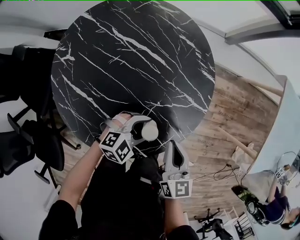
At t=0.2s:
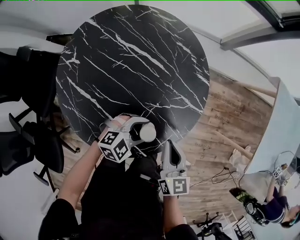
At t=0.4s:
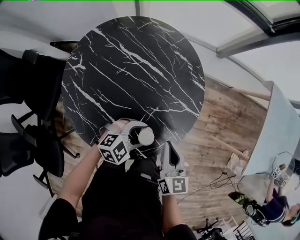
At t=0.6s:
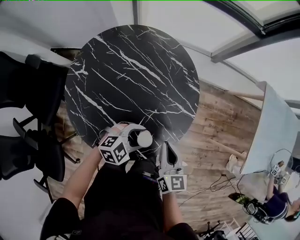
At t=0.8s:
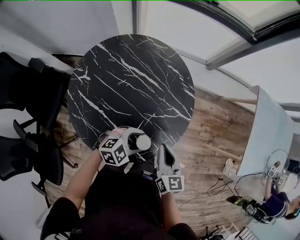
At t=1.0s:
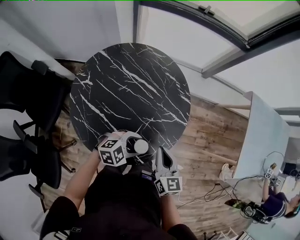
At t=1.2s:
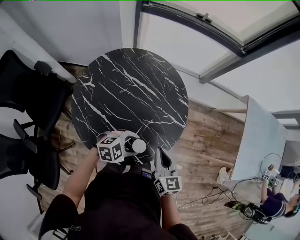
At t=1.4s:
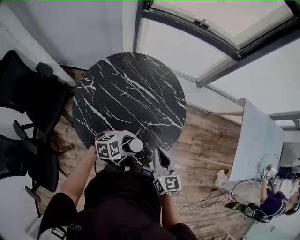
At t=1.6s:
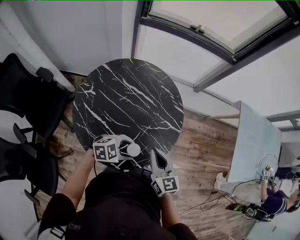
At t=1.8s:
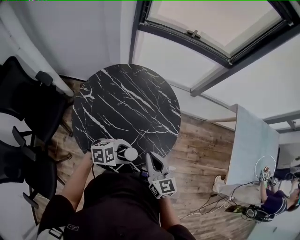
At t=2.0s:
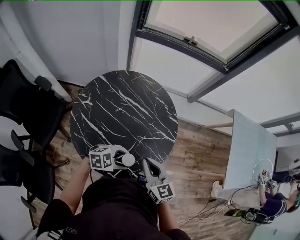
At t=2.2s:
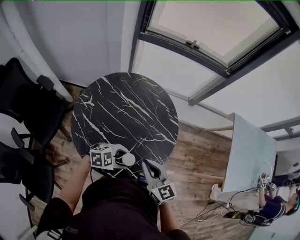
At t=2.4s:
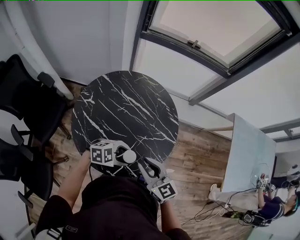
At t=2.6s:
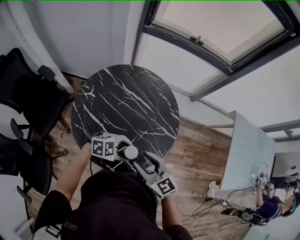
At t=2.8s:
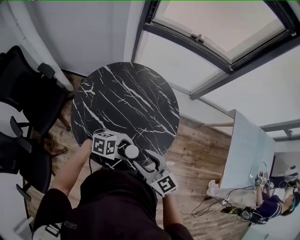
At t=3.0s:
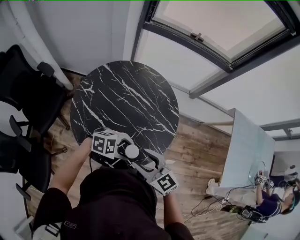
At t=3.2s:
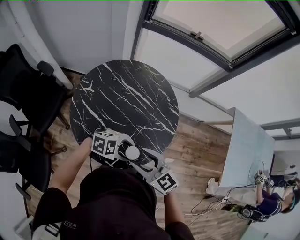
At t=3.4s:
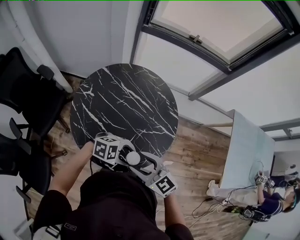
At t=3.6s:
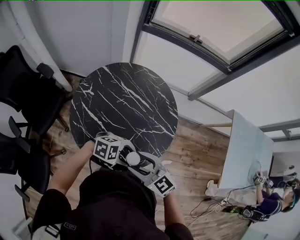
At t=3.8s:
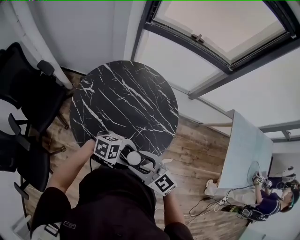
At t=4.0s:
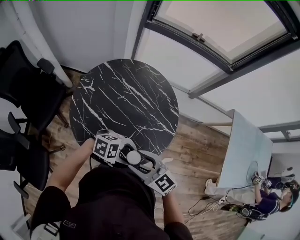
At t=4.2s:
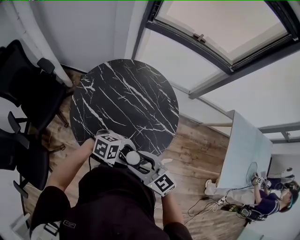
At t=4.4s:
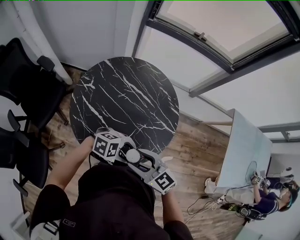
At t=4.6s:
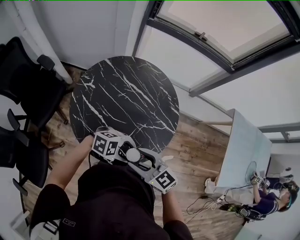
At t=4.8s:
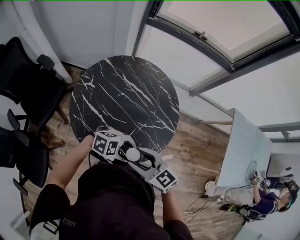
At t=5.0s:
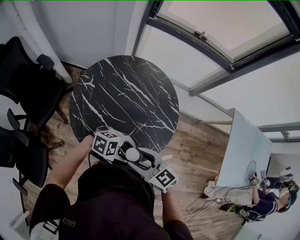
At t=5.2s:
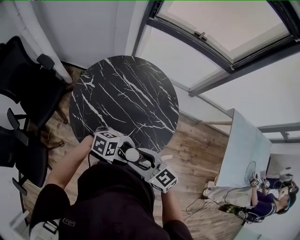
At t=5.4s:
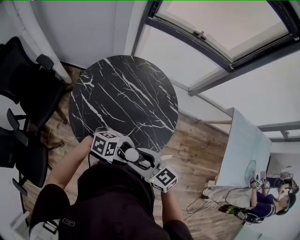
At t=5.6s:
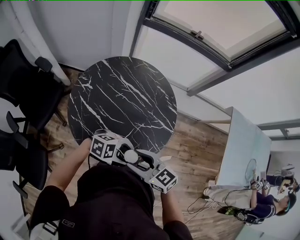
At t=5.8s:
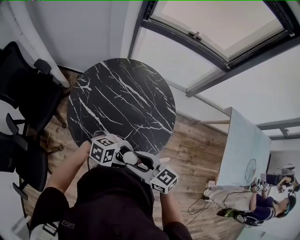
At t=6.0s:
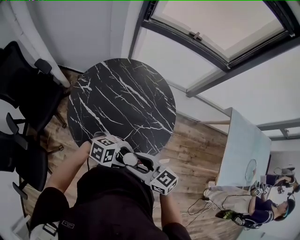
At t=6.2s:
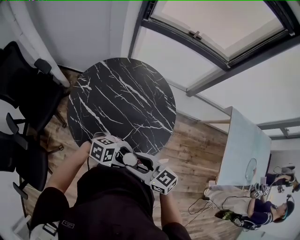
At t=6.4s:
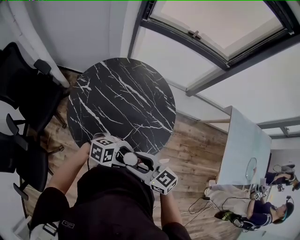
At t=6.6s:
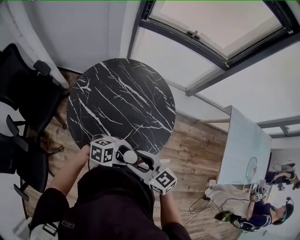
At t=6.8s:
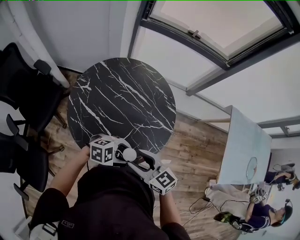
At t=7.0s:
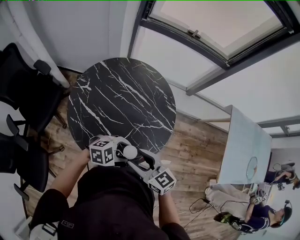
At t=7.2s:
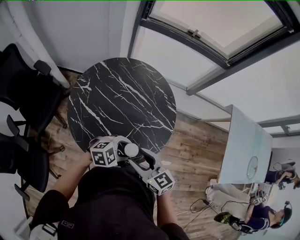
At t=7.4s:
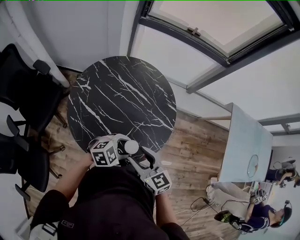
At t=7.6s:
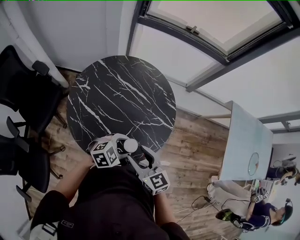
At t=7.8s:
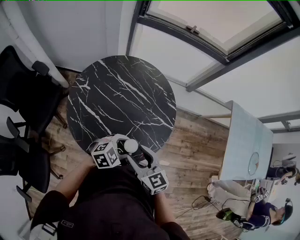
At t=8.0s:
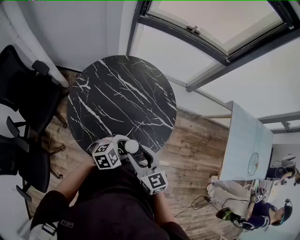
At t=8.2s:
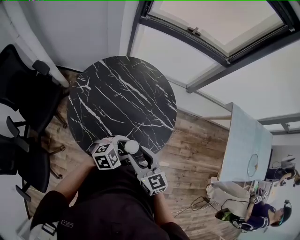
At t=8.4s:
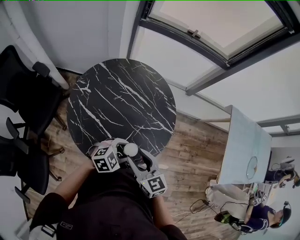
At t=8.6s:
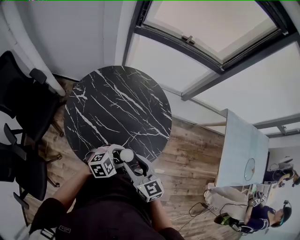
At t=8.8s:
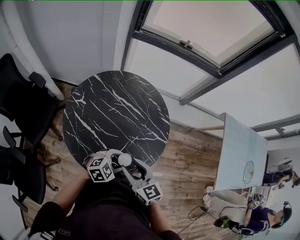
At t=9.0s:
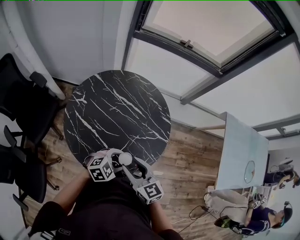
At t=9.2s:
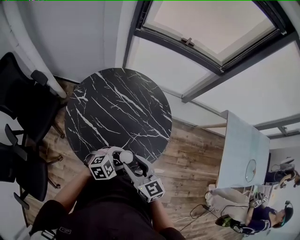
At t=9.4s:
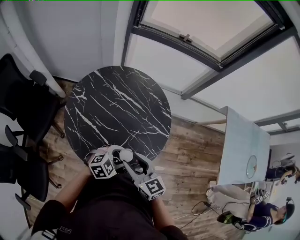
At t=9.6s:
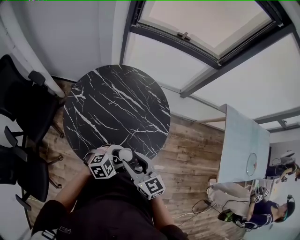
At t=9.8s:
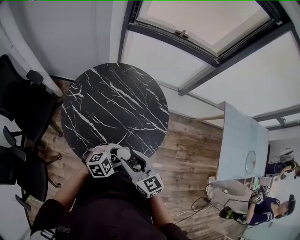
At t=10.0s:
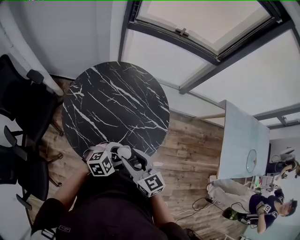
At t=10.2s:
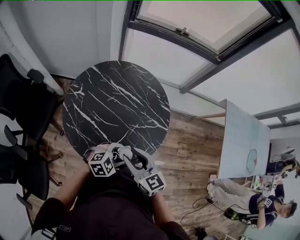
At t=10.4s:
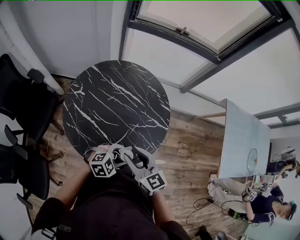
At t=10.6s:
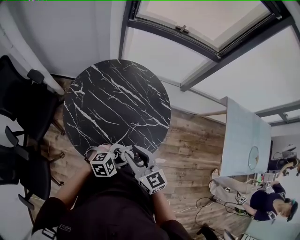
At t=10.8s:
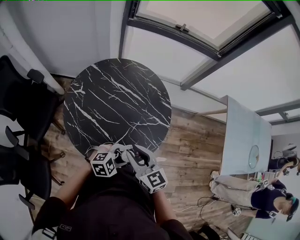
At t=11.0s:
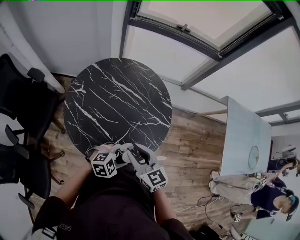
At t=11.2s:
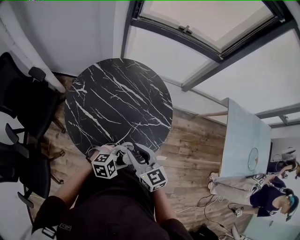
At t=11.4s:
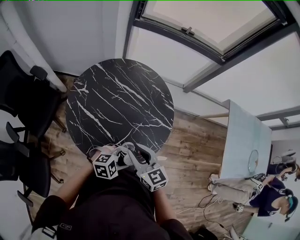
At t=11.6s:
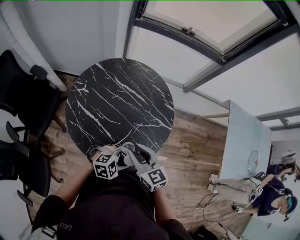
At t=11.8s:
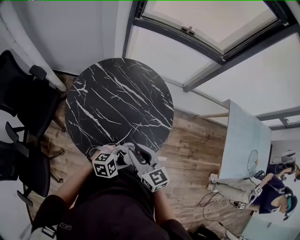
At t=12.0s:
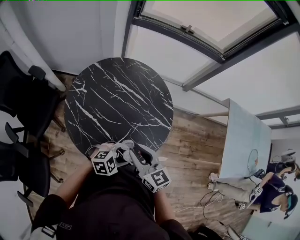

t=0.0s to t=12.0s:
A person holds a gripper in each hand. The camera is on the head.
t=0.0s to t=1.6s: The grippers both shift upward and backward by approximately 20 cm.
t=1.6s to t=3.0s: The right gripper ends up some 10 cm from where it was, swivels about 30 degrees, and opens its fingers.
t=3.0s to t=6.0s: The grippers move only a little.
t=6.0s to t=7.6s: The left gripper moves some 5 cm, and changes its angle by roughly 40 degrees. Meanwhile the right gripper swivels approximately 20 degrees.
t=7.6s to t=10.4s: The grippers stay close to where they were, moving slightly.
t=10.4s to t=12.0s: The grippers stay close to where they were, moving slightly.

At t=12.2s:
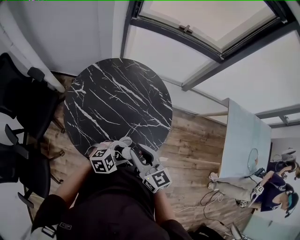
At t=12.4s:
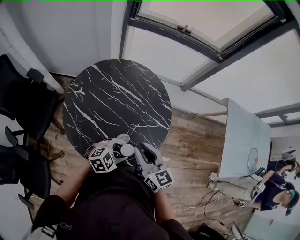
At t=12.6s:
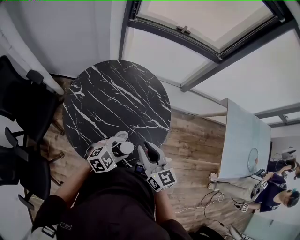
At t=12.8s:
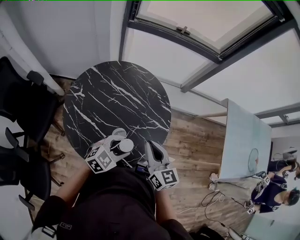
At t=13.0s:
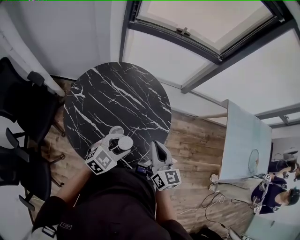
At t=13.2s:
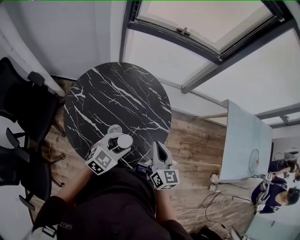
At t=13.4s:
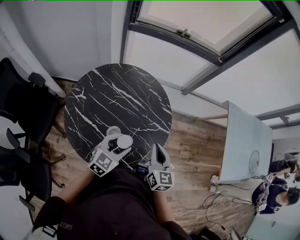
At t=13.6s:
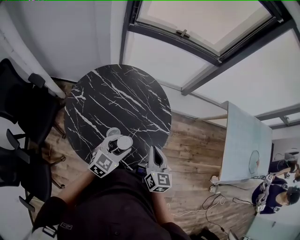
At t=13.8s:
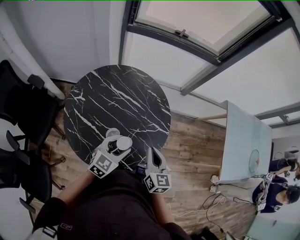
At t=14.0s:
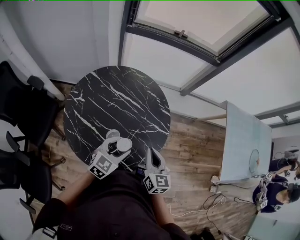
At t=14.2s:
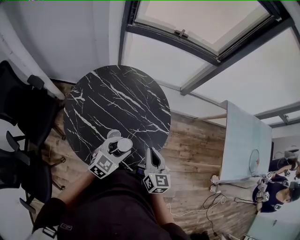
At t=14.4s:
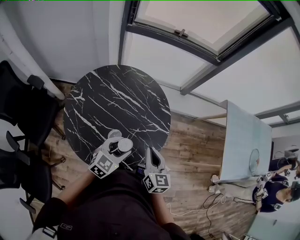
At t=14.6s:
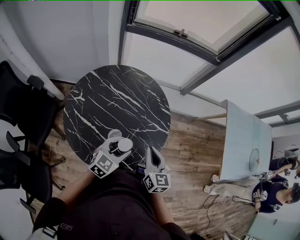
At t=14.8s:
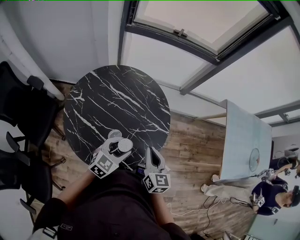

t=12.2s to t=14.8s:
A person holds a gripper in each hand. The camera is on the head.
t=12.2s to t=13.4s: The right gripper moves to the right and forward, about 10 cm, rotates roughly 30 degrees, and closes up. Meanwhile the left gripper shifts about 10 cm forward and upward, and changes its angle by about 30 degrees.
t=13.4s to t=14.8s: There are only small adjustments of the grippers.

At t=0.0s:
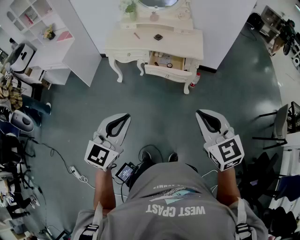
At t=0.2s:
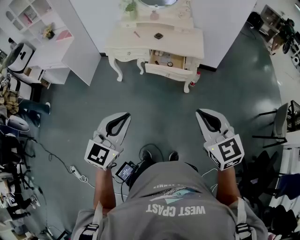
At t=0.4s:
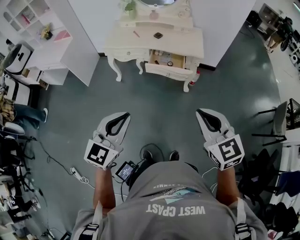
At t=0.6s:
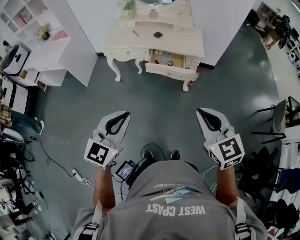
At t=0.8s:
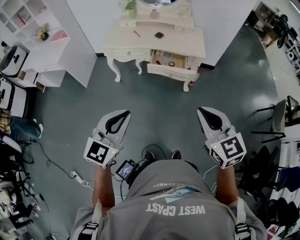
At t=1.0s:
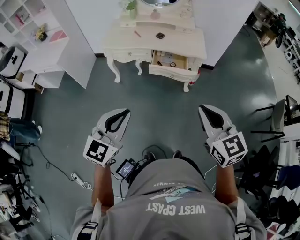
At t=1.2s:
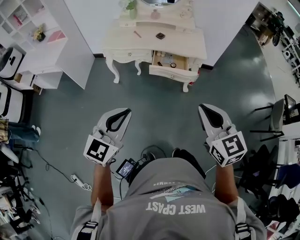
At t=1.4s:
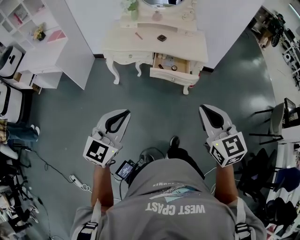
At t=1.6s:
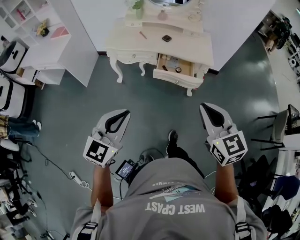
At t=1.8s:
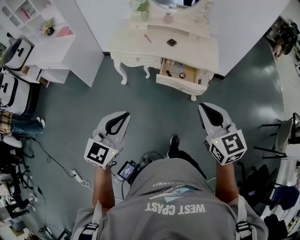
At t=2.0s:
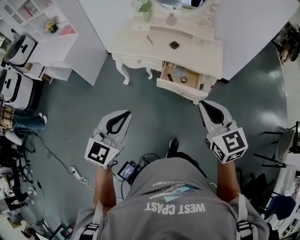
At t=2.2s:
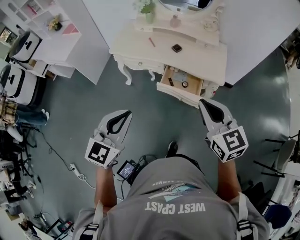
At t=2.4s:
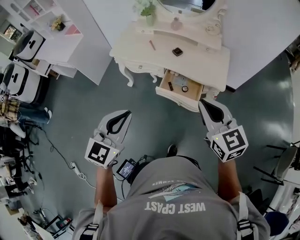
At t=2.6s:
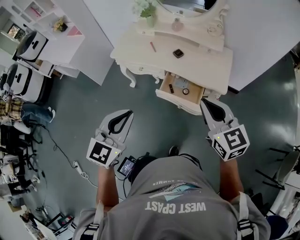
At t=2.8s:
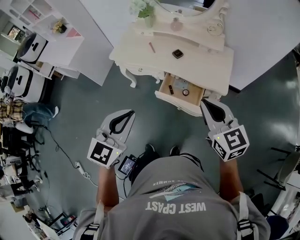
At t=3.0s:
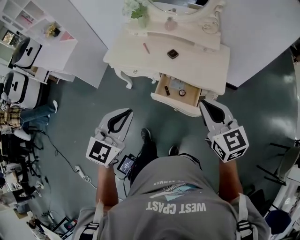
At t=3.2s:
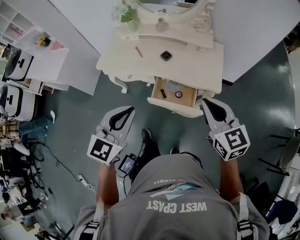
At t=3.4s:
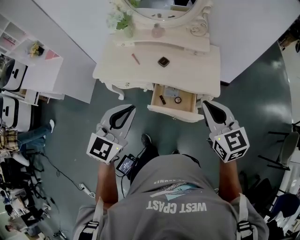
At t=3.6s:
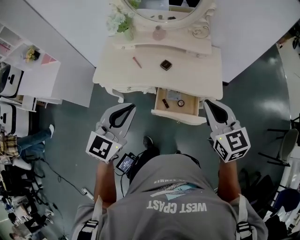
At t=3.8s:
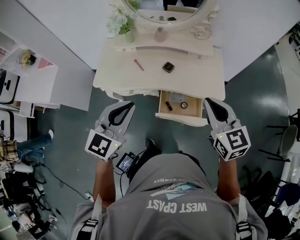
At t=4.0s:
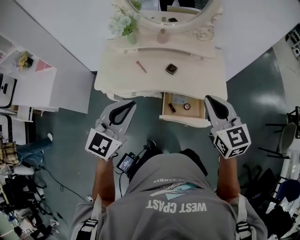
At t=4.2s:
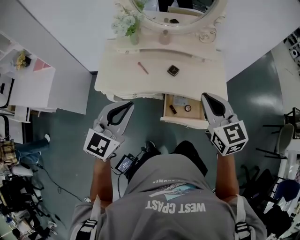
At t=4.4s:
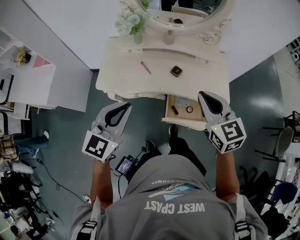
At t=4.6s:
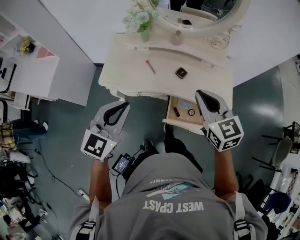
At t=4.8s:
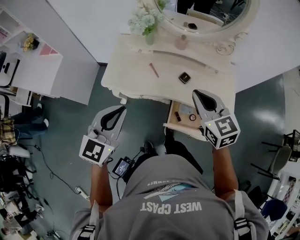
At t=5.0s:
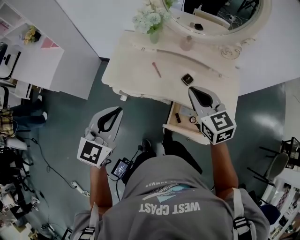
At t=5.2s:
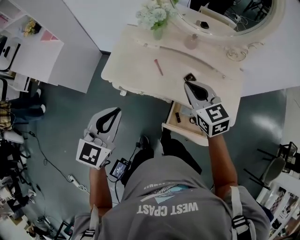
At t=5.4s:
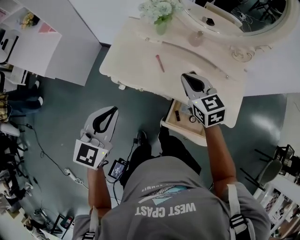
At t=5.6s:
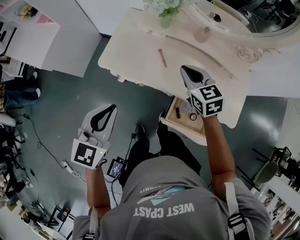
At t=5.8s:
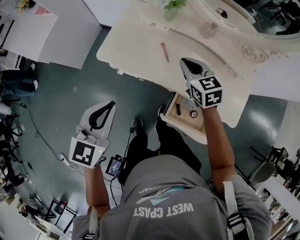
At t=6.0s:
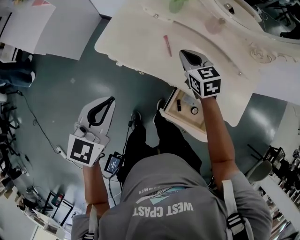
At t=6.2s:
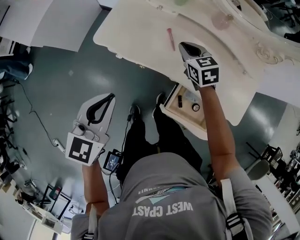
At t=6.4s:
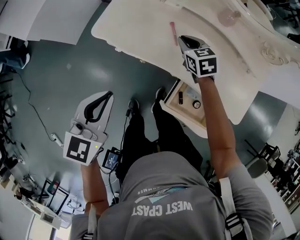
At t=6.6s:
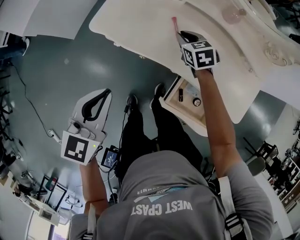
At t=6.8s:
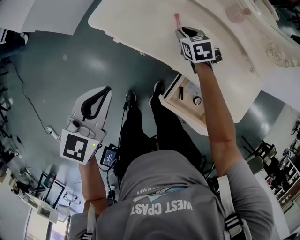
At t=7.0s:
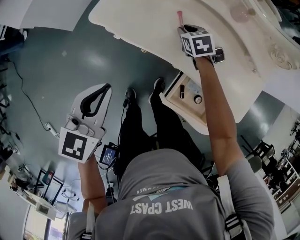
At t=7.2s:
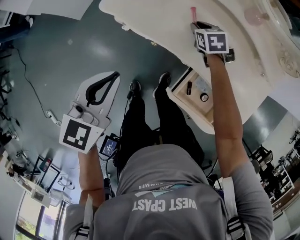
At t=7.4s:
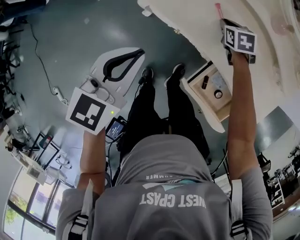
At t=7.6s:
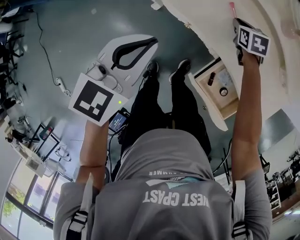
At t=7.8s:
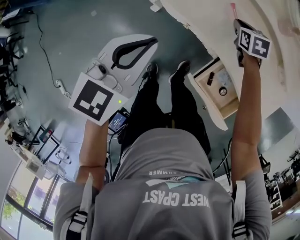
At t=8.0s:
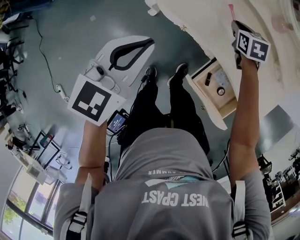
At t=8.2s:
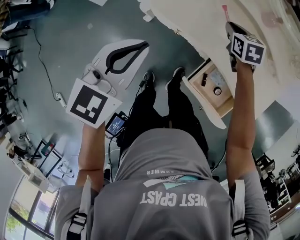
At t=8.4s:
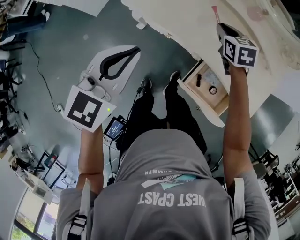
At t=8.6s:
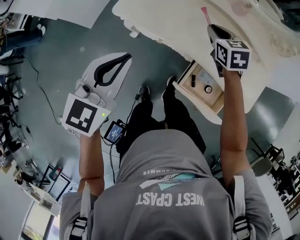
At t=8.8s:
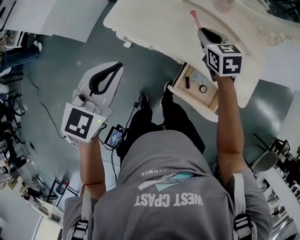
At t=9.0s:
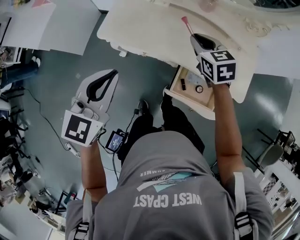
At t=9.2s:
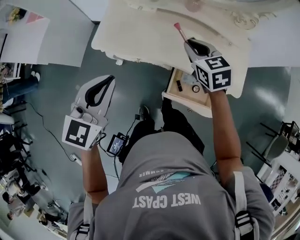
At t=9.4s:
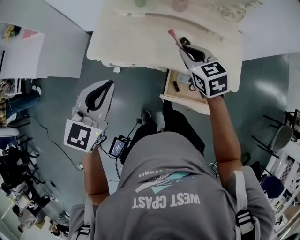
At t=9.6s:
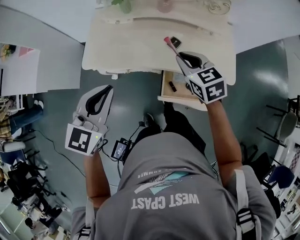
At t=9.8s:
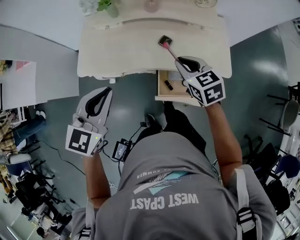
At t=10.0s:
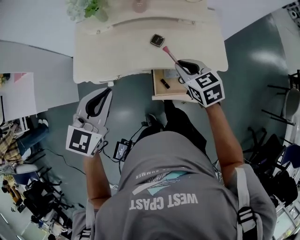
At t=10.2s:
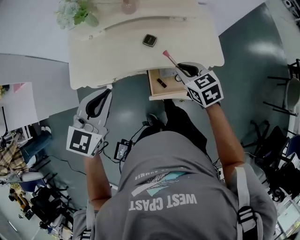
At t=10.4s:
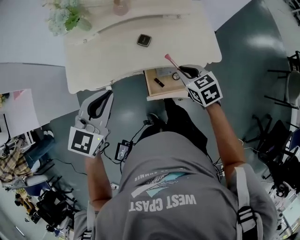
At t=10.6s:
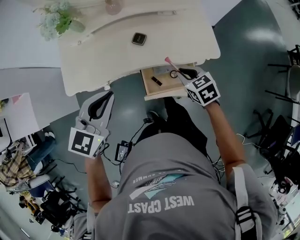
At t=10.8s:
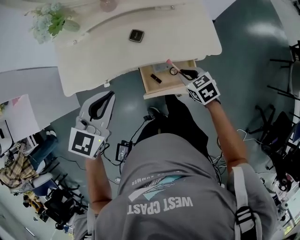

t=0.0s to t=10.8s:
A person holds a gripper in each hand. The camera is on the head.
t=0.0s to t=1.6s: The right gripper is displaced forward and to the left by some 20 cm. The left gripper goes about 20 cm to the left and forward.
t=1.6s to t=3.0s: Both grippers travel together forward and to the right, about 30 cm.
t=3.0s to t=4.6s: The right gripper heads to the left and forward, covering approximately 30 cm; the left gripper shifts about 35 cm forward and to the left.
t=4.6s to t=6.2s: The left gripper goes approximately 20 cm downward, to the left and forward, and turns by approximately 30 degrees. The right gripper moves downward and forward, approximately 40 cm, and swivels approximately 30 degrees.
t=6.2s to t=7.8s: The right gripper goes approximately 10 cm downward.
t=7.8s to t=9.2s: The right gripper travels upward and backward by some 30 cm, and changes its angle by about 20 degrees. Meanwhile the left gripper is displaced upward and to the right by approximately 15 cm.
t=9.2s to t=10.8s: The left gripper is displaced to the right by about 20 cm, and rotates roughly 30 degrees. The right gripper moves to the right, backward and downward, some 30 cm, and swivels about 20 degrees.
